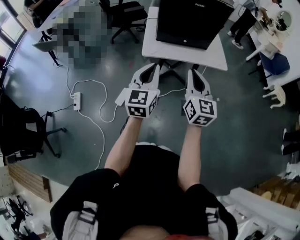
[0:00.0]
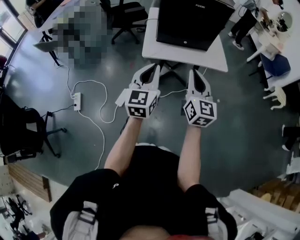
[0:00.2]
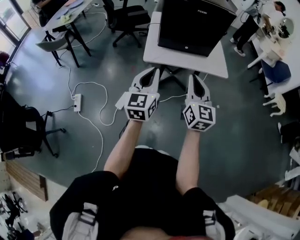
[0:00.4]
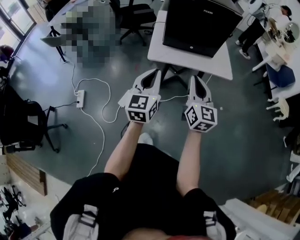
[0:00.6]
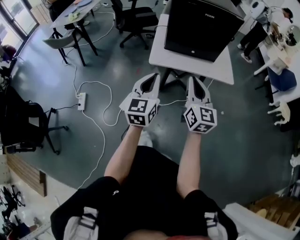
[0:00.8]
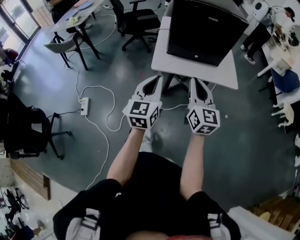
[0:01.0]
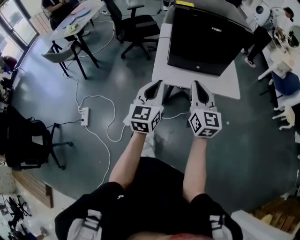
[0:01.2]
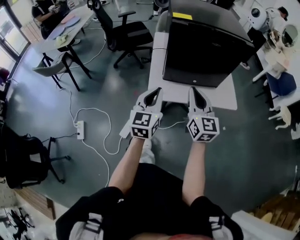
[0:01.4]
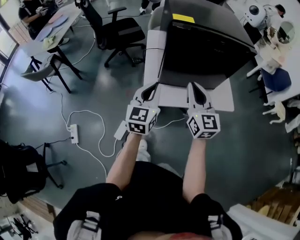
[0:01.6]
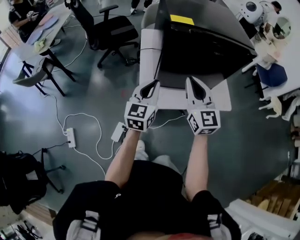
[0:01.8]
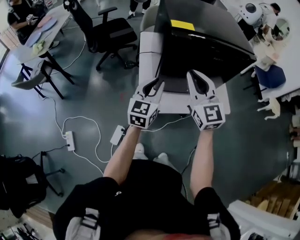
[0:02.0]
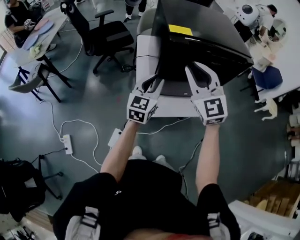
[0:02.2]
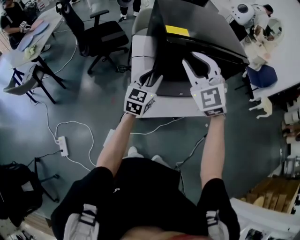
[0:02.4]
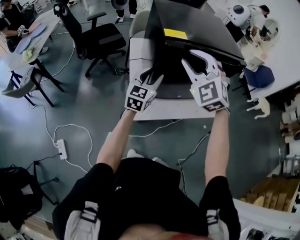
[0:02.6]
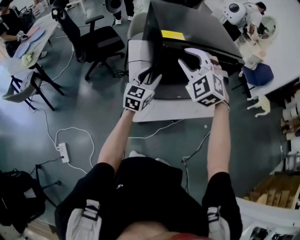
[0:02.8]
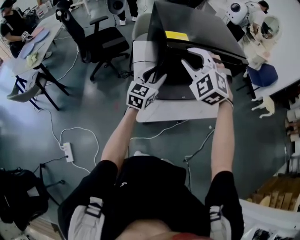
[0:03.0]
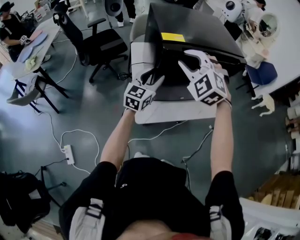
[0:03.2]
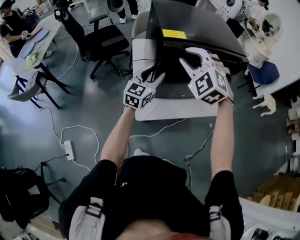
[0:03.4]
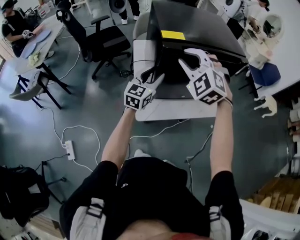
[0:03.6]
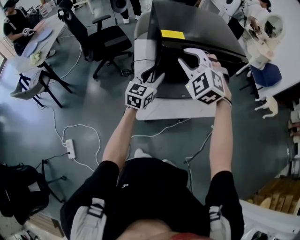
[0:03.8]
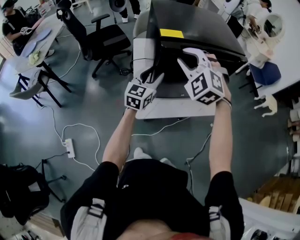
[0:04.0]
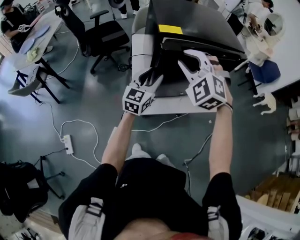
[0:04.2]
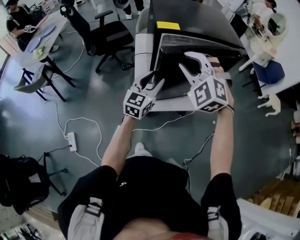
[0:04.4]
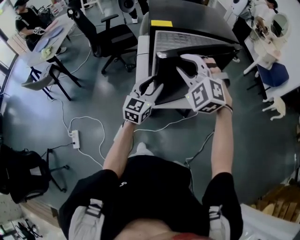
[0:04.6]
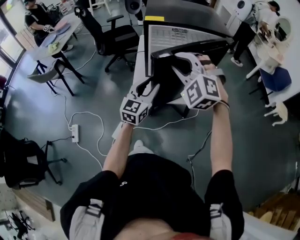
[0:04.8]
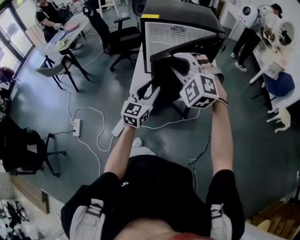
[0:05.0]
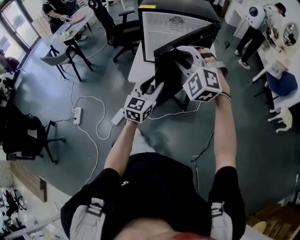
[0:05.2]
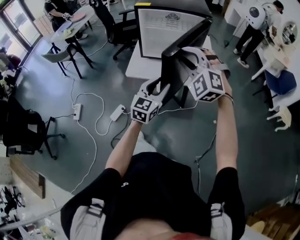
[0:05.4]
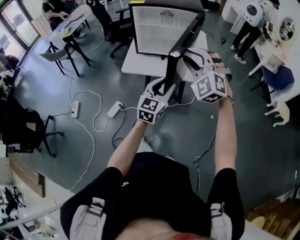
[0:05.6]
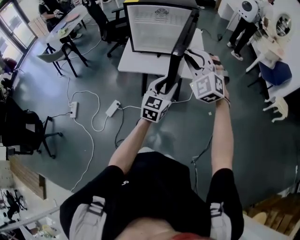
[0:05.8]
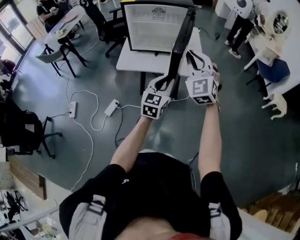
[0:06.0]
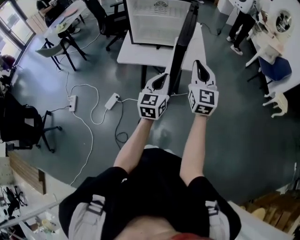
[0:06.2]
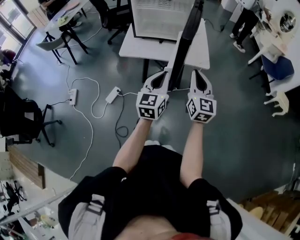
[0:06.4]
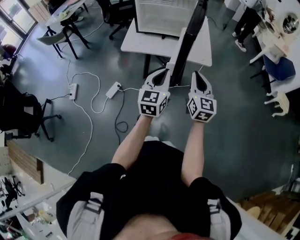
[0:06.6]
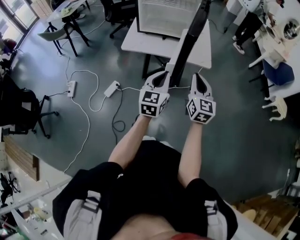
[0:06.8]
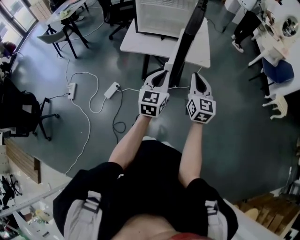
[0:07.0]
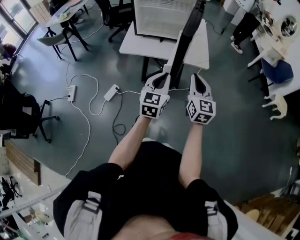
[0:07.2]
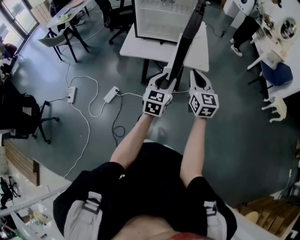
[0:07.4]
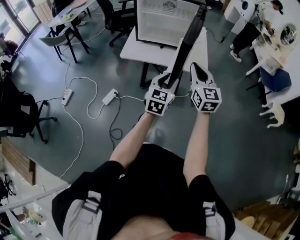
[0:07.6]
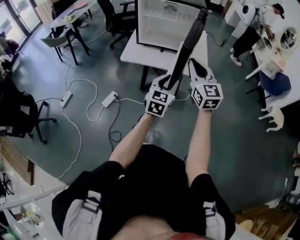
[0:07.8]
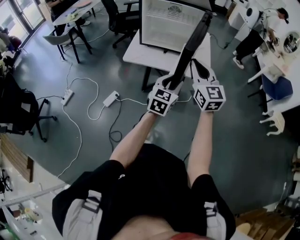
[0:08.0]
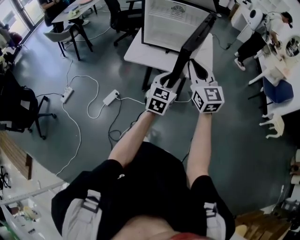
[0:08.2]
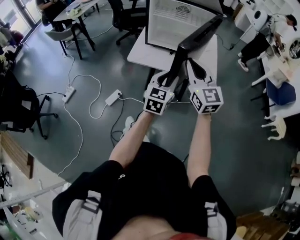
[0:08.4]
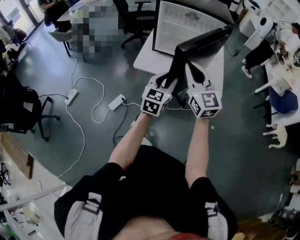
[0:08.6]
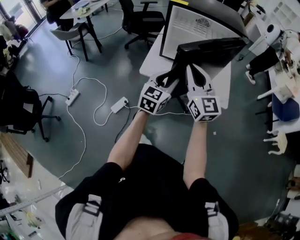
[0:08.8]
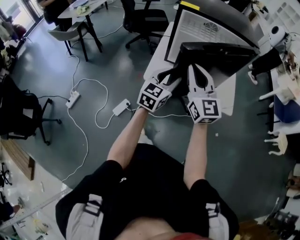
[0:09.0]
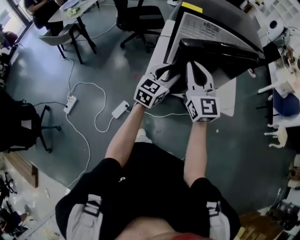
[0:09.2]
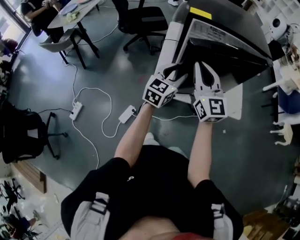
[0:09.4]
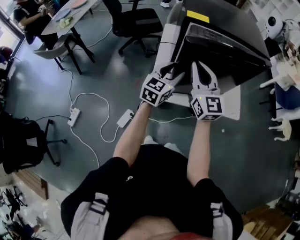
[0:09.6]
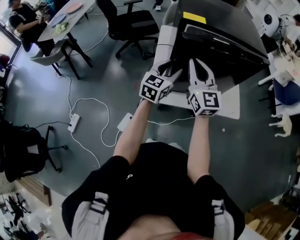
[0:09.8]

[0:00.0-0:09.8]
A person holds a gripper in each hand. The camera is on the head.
0:00.0 to 0:01.4: Both grippers move forward, about 20 cm.
0:01.4 to 0:02.8: The left gripper shifts roughly 25 cm forward, and opens up; the right gripper moves forward and upward, some 25 cm, twists roughly 70 degrees counterclockwise, seen from behind, and opens its fingers.
0:02.8 to 0:04.2: The grippers stay close to where they were, moving slightly.
0:04.2 to 0:05.6: Both grippers move backward and to the right, about 40 cm.
0:05.6 to 0:07.0: The right gripper goes some 20 cm downward, backward and to the right, rotates around the line of its fingers by some 70 degrees, clockwise from behind, and closes its fingers; the left gripper is displaced backward by approximately 5 cm, and closes its fingers.
0:07.0 to 0:08.4: The left gripper travels forward by some 10 cm, and opens its fingers; the right gripper travels to the left, upward and forward by roughly 15 cm, and rotates about 30 degrees.
0:08.4 to 0:09.8: Both grippers move forward and to the left, roughly 35 cm.

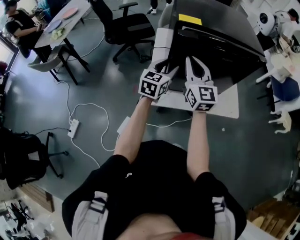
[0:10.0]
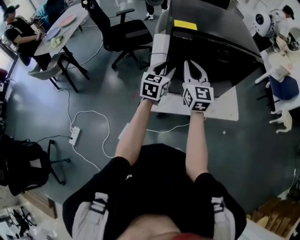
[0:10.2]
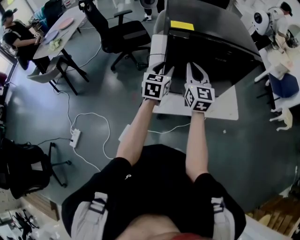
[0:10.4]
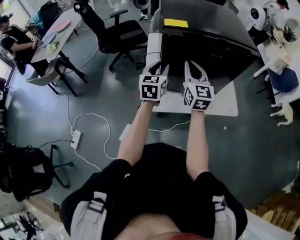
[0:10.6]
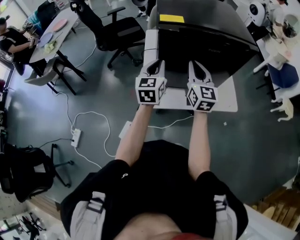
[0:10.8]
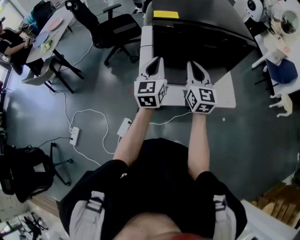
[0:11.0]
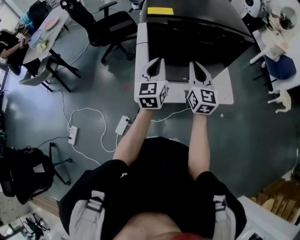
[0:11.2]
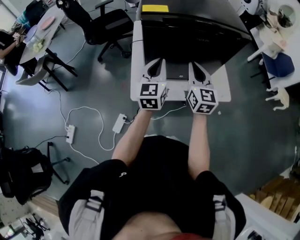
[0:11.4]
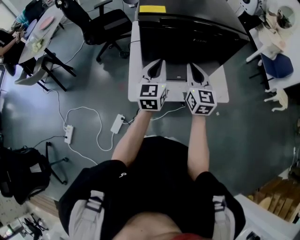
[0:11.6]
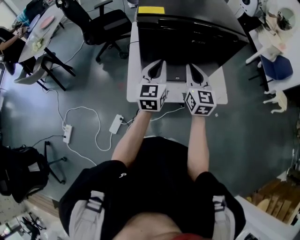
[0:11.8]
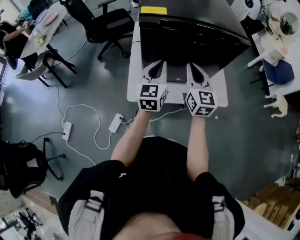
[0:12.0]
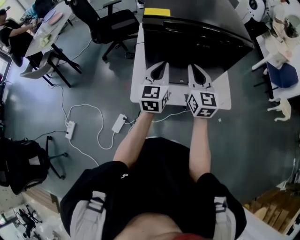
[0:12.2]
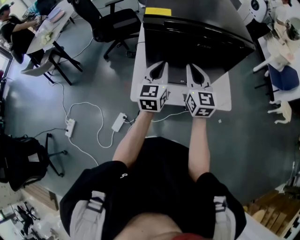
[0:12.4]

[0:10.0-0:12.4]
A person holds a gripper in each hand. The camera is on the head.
0:10.0 to 0:11.2: The left gripper shifts by roughly 5 cm, and closes up. The right gripper moves to the right, approximately 10 cm.
0:11.2 to 0:12.4: The grippers move only a little.

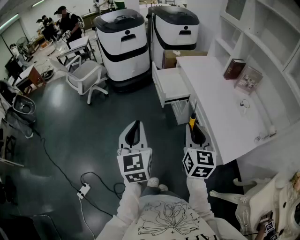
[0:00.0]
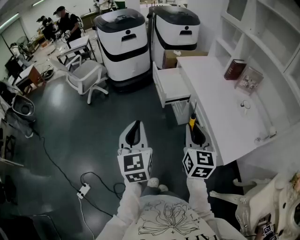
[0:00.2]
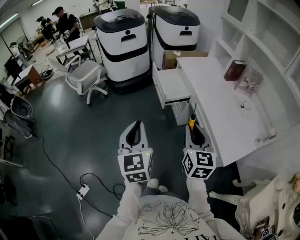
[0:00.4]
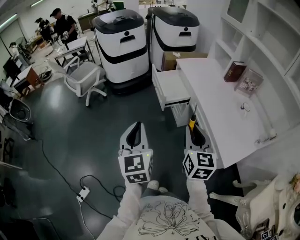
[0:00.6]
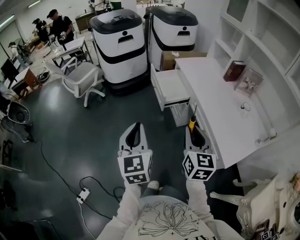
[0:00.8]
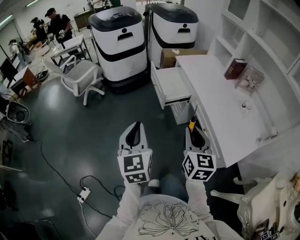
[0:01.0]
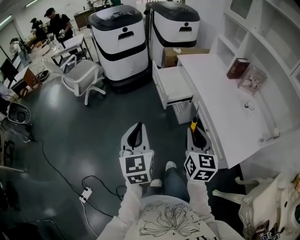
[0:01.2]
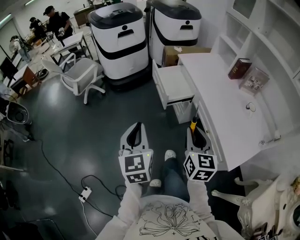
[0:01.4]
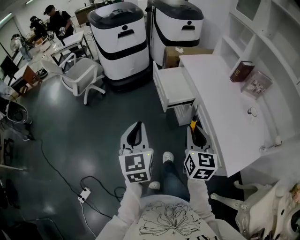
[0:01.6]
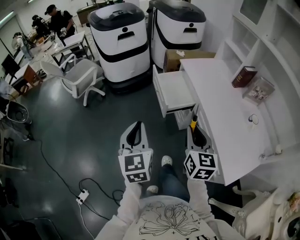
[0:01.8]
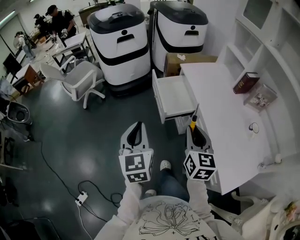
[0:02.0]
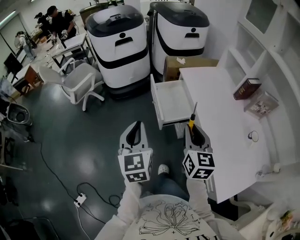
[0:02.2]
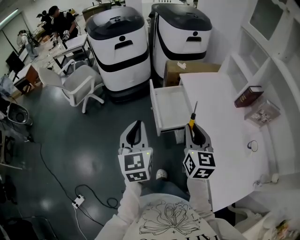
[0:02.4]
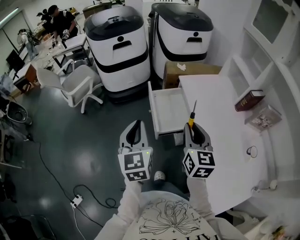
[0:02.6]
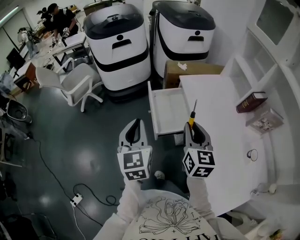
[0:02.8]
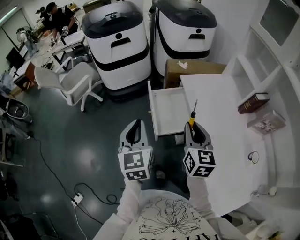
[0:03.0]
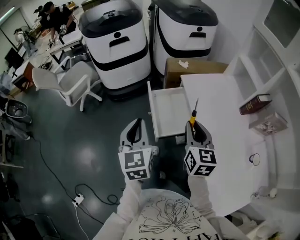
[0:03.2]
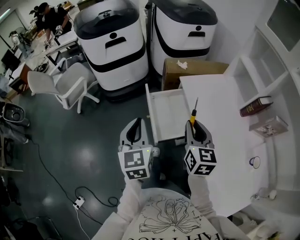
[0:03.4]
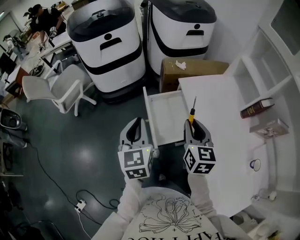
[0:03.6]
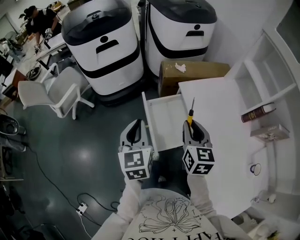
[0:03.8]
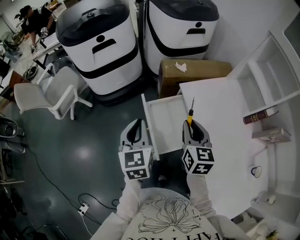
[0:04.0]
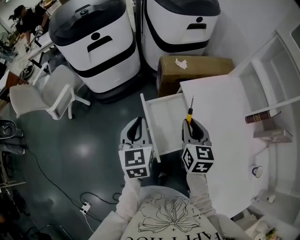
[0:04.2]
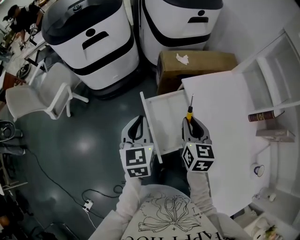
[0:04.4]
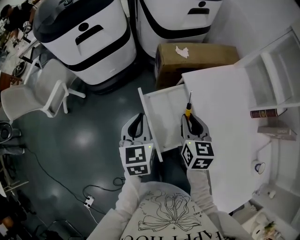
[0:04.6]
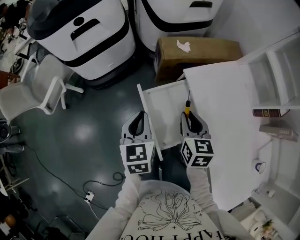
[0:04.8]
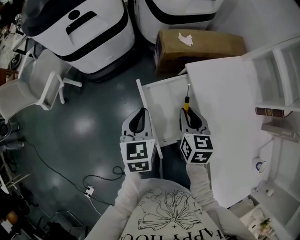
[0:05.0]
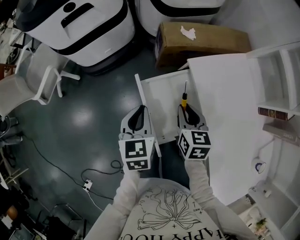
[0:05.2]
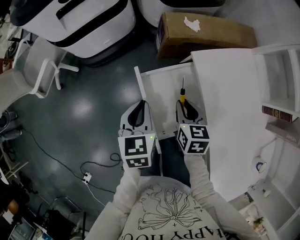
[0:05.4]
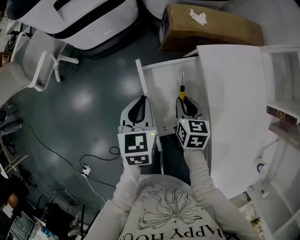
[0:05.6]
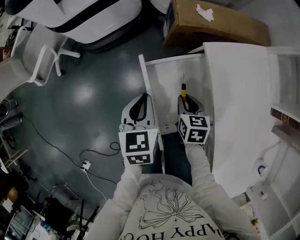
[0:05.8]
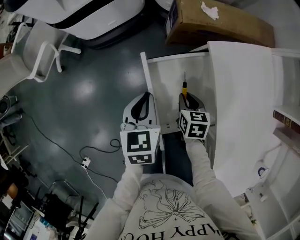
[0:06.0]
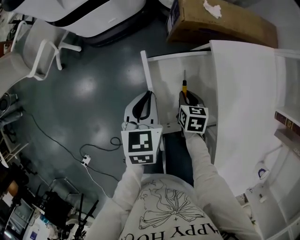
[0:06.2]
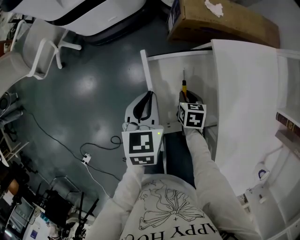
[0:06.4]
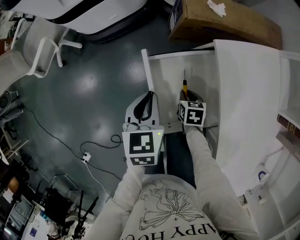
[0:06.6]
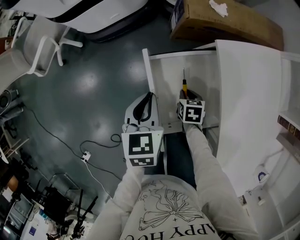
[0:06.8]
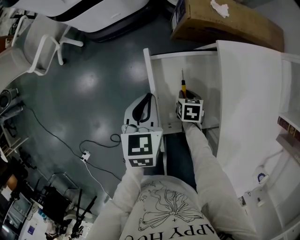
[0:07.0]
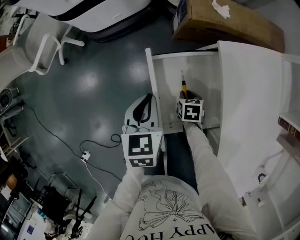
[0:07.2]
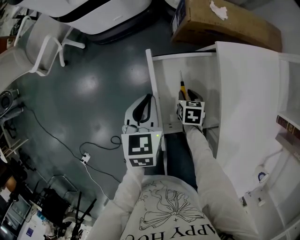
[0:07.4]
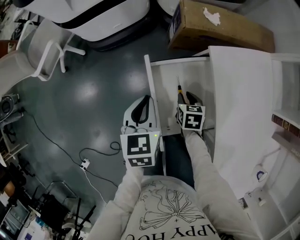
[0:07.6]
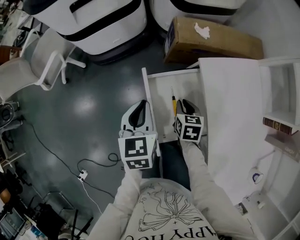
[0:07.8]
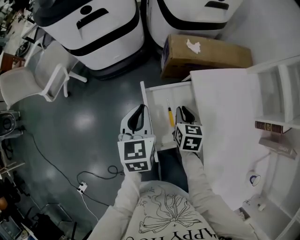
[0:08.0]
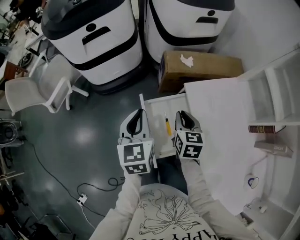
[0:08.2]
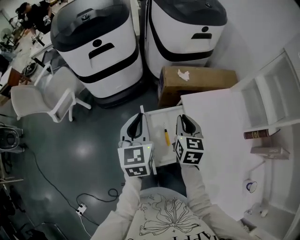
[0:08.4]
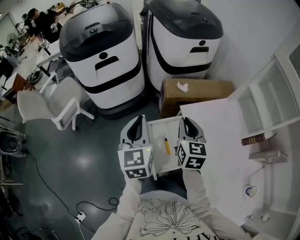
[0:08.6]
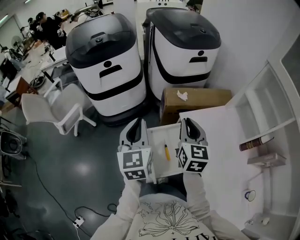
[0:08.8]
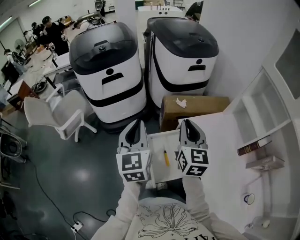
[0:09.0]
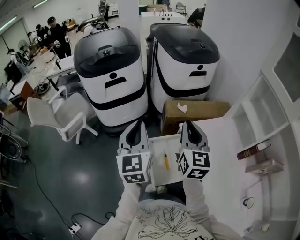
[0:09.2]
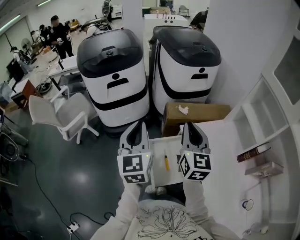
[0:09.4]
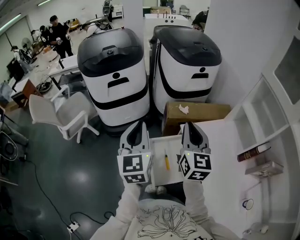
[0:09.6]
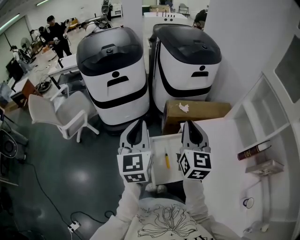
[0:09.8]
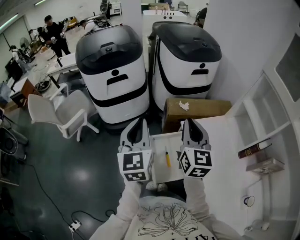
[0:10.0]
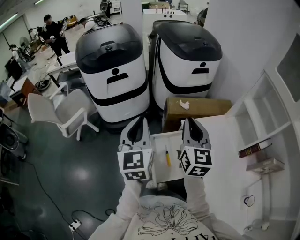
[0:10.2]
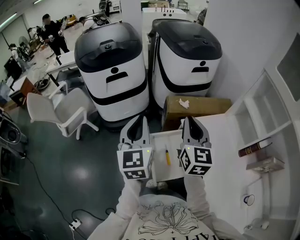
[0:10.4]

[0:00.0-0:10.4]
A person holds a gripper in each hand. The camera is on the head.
0:00.0 to 0:01.4: Both grippers move forward, roughly 10 cm.
0:01.4 to 0:03.0: The grippers both shift forward by about 30 cm.
0:03.0 to 0:04.4: The grippers both shift forward and downward by about 25 cm.
0:04.4 to 0:06.0: The left gripper travels downward by approximately 15 cm, while the right gripper goes some 25 cm downward, and swivels approximately 30 degrees.
0:06.0 to 0:07.4: The right gripper is displaced downward by some 10 cm.
0:07.4 to 0:09.0: The right gripper is displaced upward by roughly 50 cm, points its fingers roughly 60 degrees further upward, and closes. The left gripper travels upward by approximately 35 cm, and tilts its fingers some 40 degrees upward.
0:09.0 to 0:10.4: The grippers move only a little.

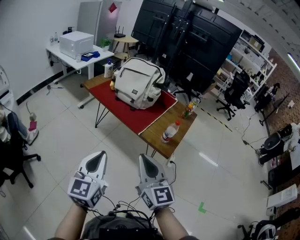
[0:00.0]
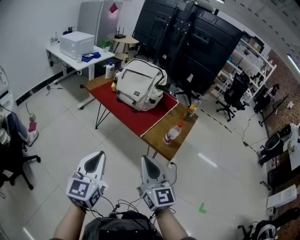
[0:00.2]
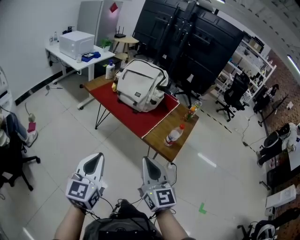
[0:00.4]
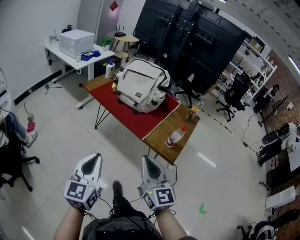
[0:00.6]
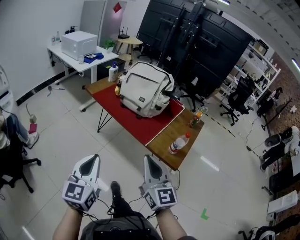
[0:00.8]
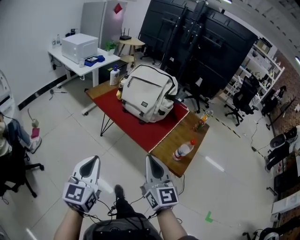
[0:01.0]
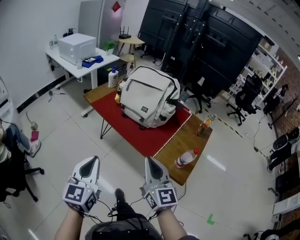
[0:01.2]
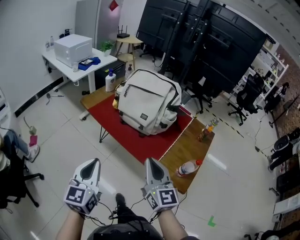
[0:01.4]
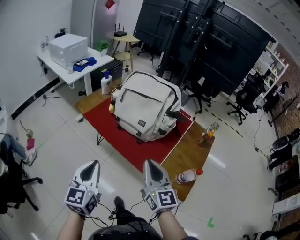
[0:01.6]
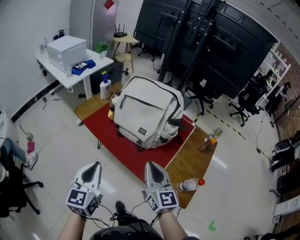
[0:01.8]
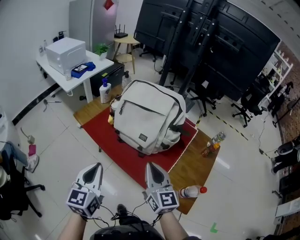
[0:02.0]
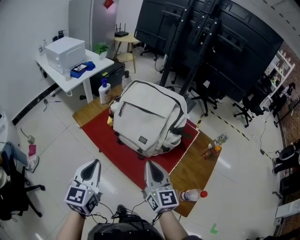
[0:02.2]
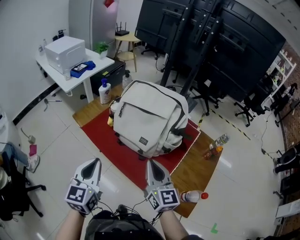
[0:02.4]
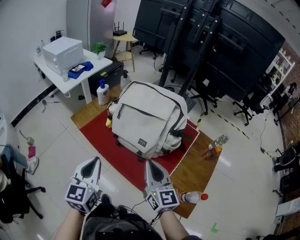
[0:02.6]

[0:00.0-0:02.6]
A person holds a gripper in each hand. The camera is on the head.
0:00.0 to 0:01.2: Both grippers travel together forward, some 25 cm.
0:01.2 to 0:02.6: The grippers both shift forward by roughly 30 cm.
